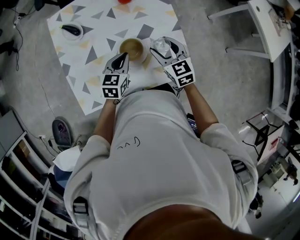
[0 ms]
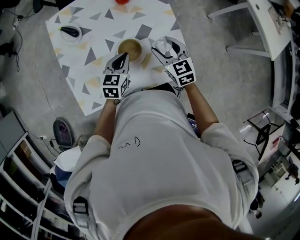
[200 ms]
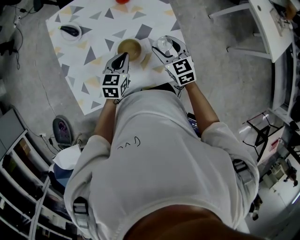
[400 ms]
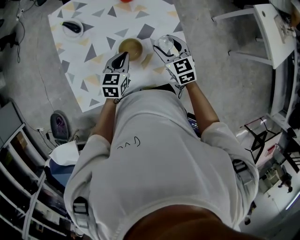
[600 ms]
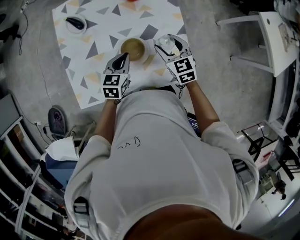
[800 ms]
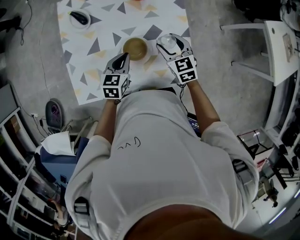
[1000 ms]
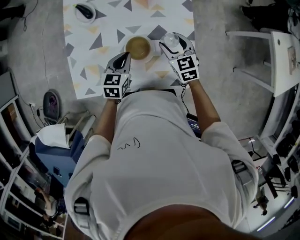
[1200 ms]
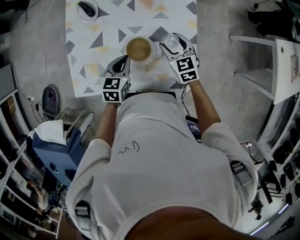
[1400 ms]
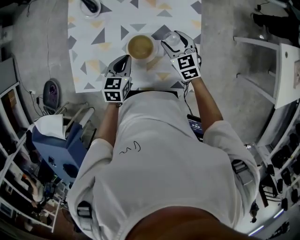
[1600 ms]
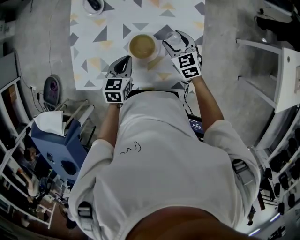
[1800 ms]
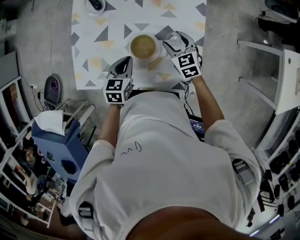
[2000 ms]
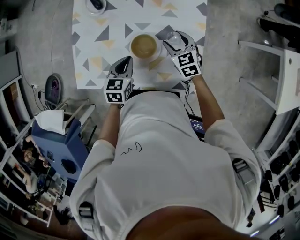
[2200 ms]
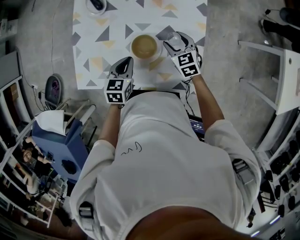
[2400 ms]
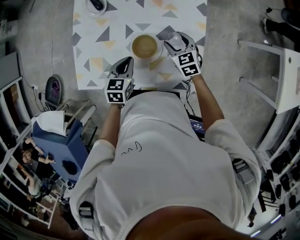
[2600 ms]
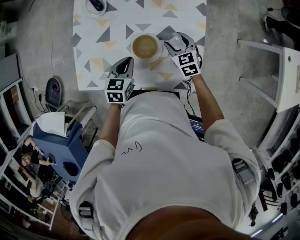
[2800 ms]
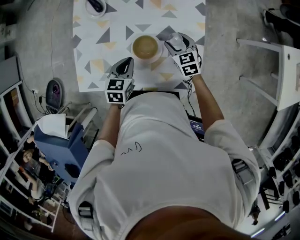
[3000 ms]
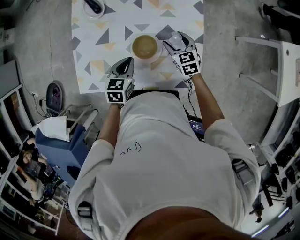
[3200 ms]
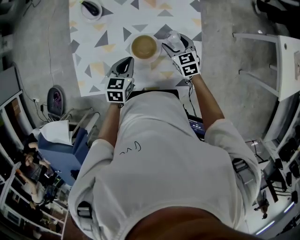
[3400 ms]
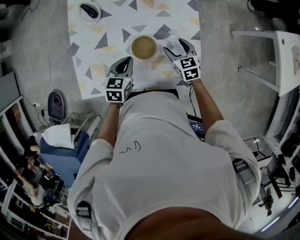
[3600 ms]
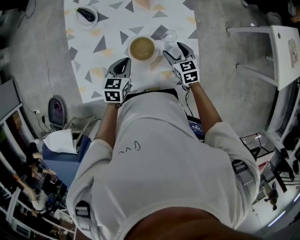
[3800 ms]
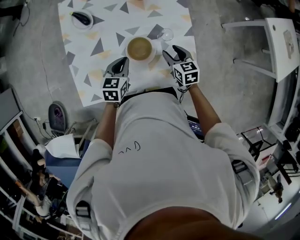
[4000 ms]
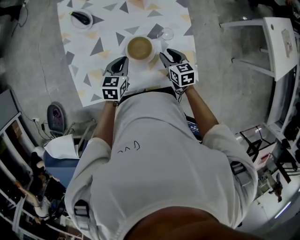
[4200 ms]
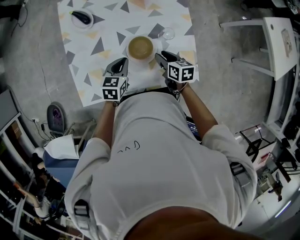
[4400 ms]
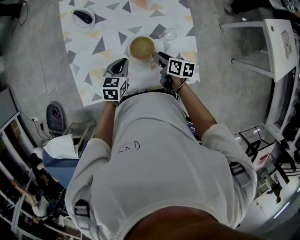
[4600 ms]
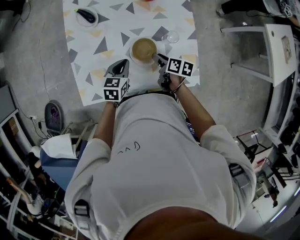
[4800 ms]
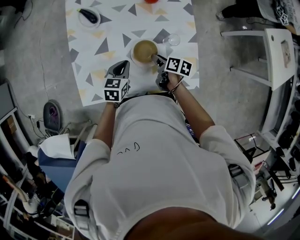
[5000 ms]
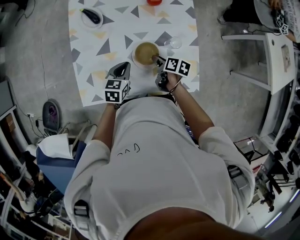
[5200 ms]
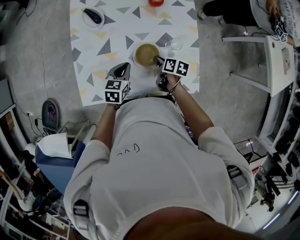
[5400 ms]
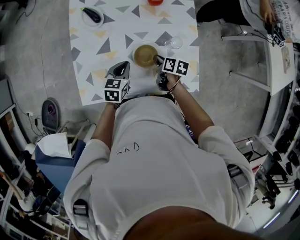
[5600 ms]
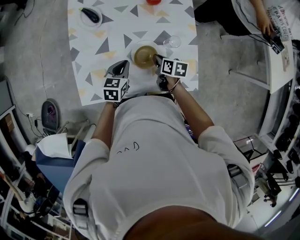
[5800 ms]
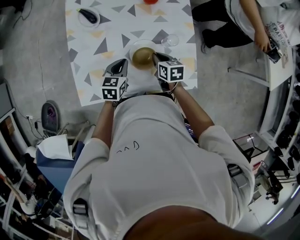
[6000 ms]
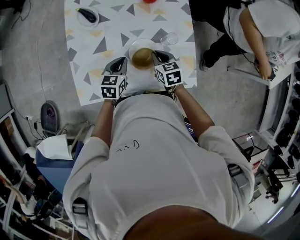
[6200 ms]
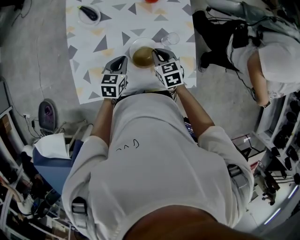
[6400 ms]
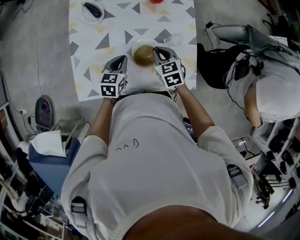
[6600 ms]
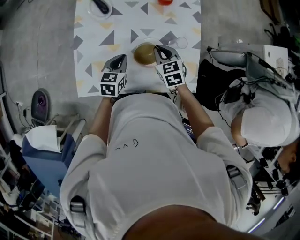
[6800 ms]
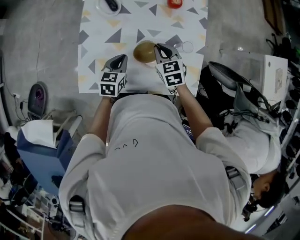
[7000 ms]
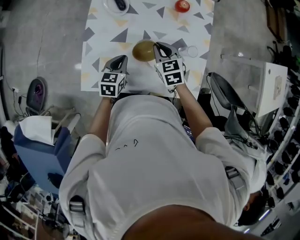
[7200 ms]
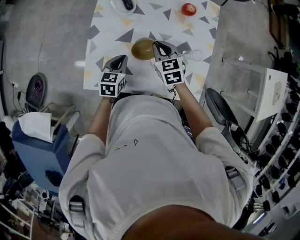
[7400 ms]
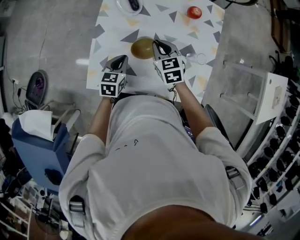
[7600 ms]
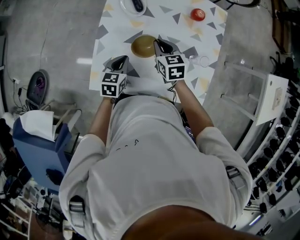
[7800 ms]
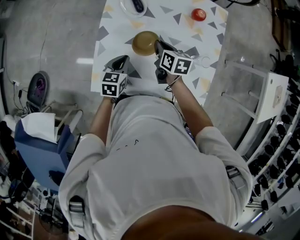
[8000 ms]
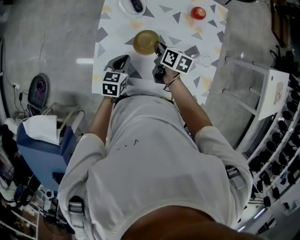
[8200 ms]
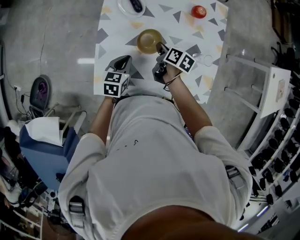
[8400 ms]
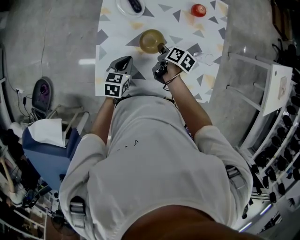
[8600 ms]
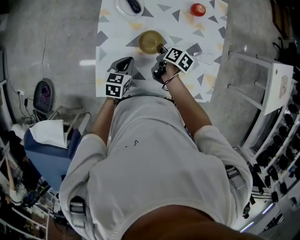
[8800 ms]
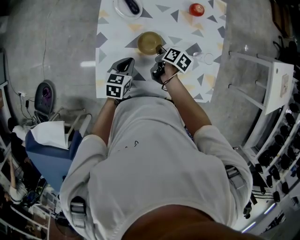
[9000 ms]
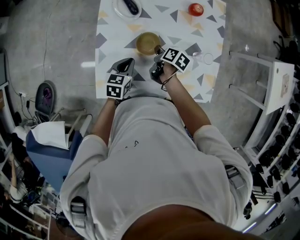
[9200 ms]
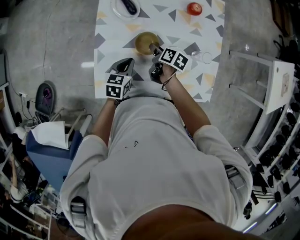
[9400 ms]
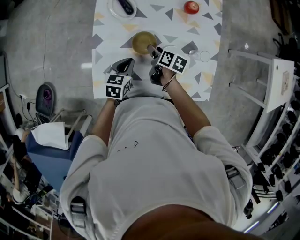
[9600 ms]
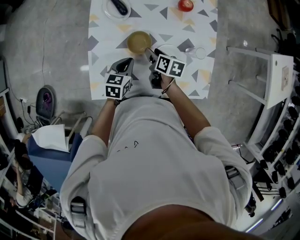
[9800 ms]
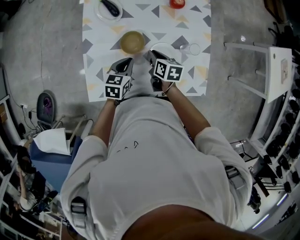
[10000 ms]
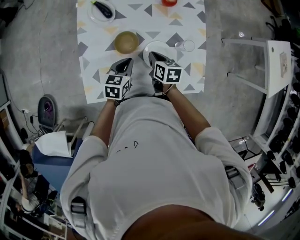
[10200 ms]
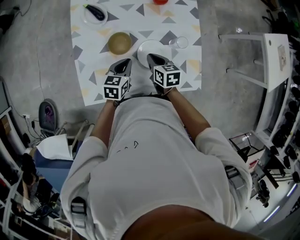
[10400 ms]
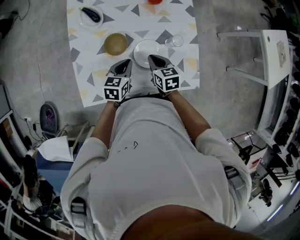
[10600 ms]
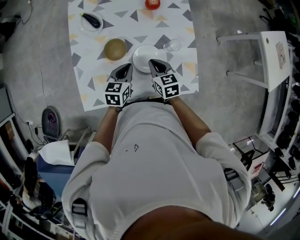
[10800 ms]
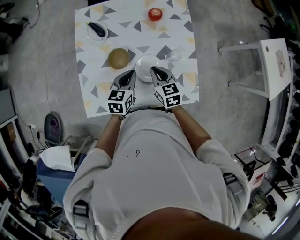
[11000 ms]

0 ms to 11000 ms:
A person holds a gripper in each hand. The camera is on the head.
0 ms to 1600 ms: The left gripper turns by some 20 degrees, while the right gripper travels forward and downward by some 10 cm.
1600 ms to 3200 ms: There are only small adjustments of the grippers.
3200 ms to 4800 ms: The right gripper heads backward, covering about 10 cm, rotates around the line of its fingers by about 60 degrees, clockwise from behind, and closes.
4800 ms to 6200 ms: The right gripper twists about 50 degrees counterclockwise, seen from behind, and closes up.
6200 ms to 7800 ms: The right gripper goes roughly 20 cm to the left and forward, while the left gripper goes some 15 cm to the left.
7800 ms to 9400 ms: The right gripper travels downward by some 10 cm, twists some 60 degrees clockwise, seen from behind, and opens up.
9400 ms to 11000 ms: The left gripper shifts some 15 cm to the right and upward. The right gripper heads to the right, upward and backward, covering approximately 20 cm, twists some 50 degrees counterclockwise, seen from behind, and closes up.

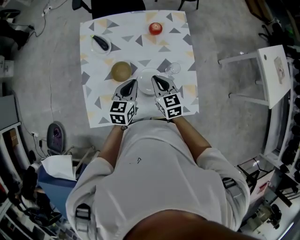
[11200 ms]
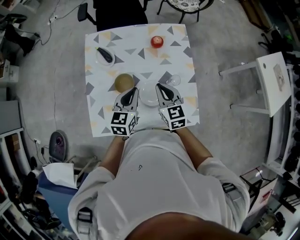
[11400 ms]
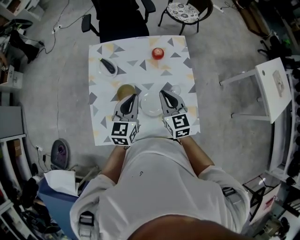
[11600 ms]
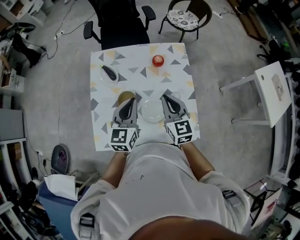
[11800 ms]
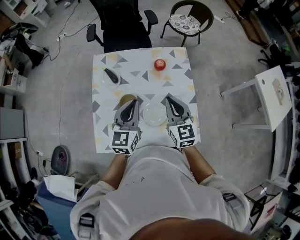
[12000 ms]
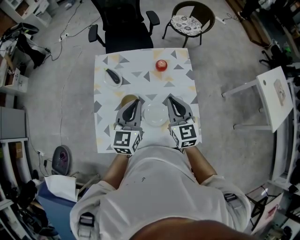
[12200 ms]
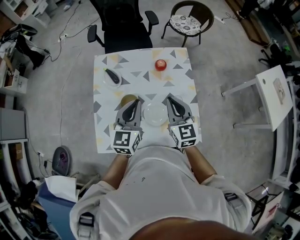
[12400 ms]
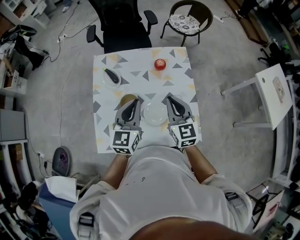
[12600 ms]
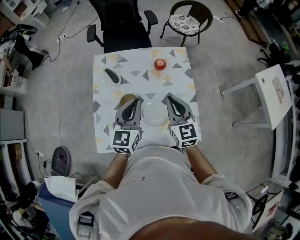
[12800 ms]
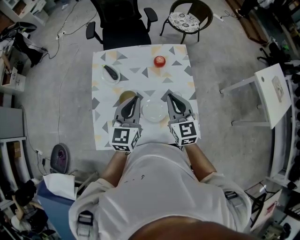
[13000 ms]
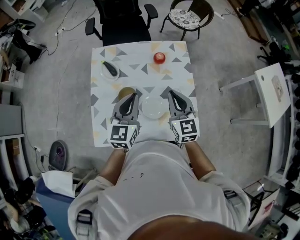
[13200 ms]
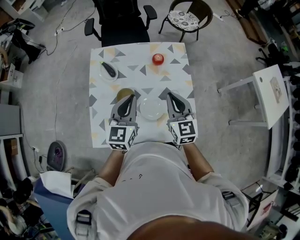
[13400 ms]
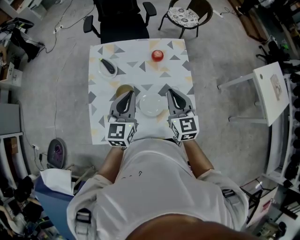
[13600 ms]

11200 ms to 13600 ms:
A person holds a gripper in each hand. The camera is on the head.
11200 ms to 12400 ms: The grippers both shift upward by approximately 15 cm. The left gripper swivels about 20 degrees.
12400 ms to 13600 ms: The grippers make only small movements.

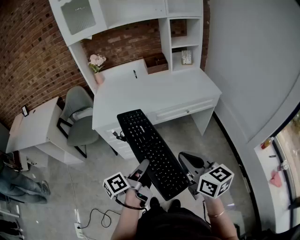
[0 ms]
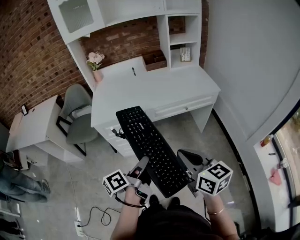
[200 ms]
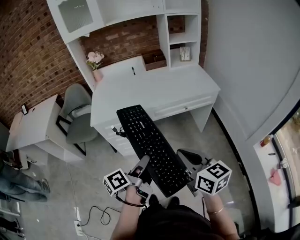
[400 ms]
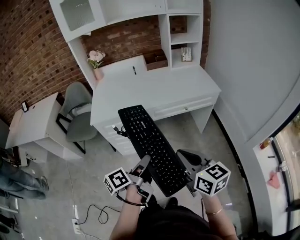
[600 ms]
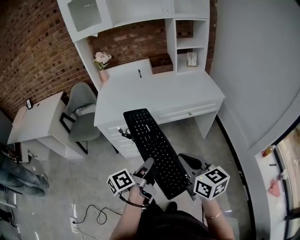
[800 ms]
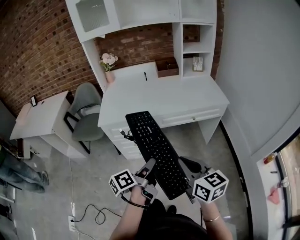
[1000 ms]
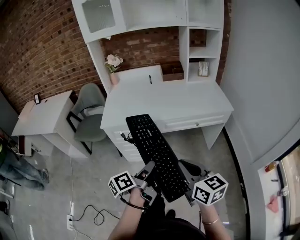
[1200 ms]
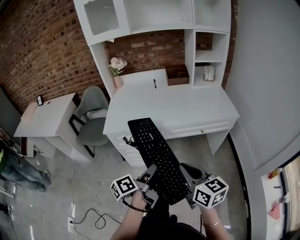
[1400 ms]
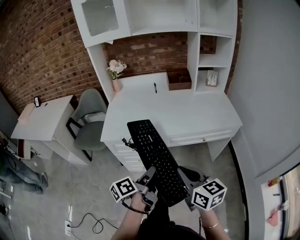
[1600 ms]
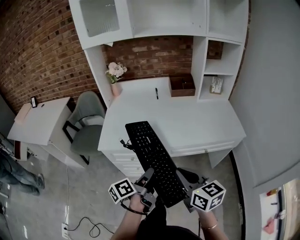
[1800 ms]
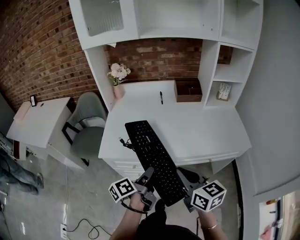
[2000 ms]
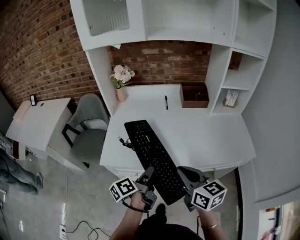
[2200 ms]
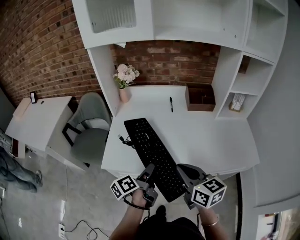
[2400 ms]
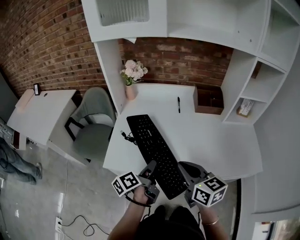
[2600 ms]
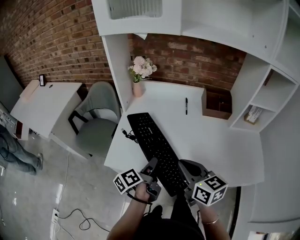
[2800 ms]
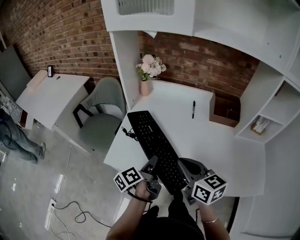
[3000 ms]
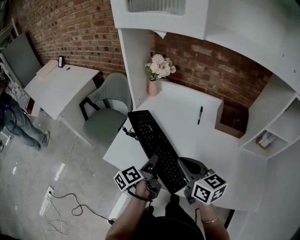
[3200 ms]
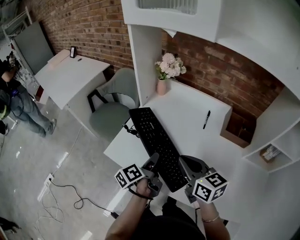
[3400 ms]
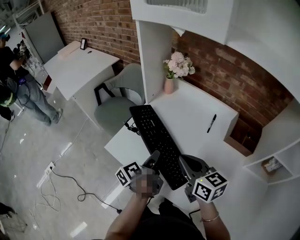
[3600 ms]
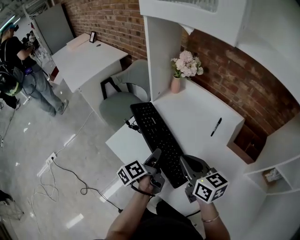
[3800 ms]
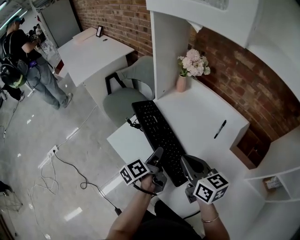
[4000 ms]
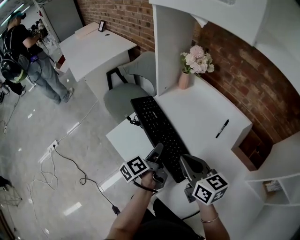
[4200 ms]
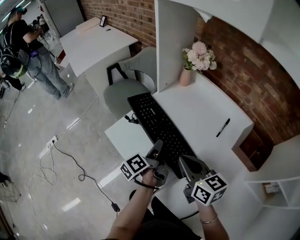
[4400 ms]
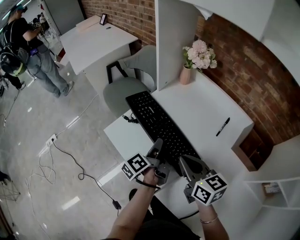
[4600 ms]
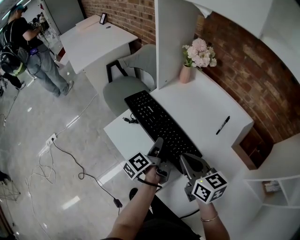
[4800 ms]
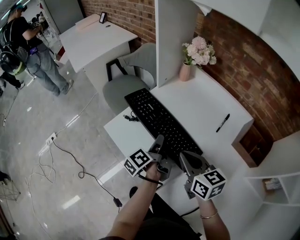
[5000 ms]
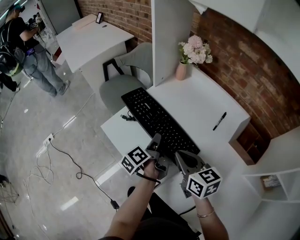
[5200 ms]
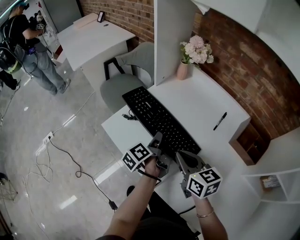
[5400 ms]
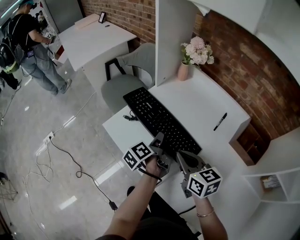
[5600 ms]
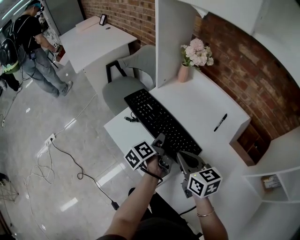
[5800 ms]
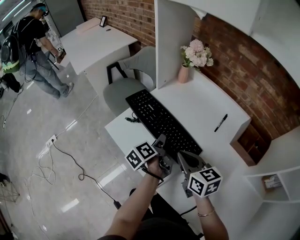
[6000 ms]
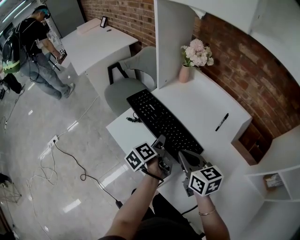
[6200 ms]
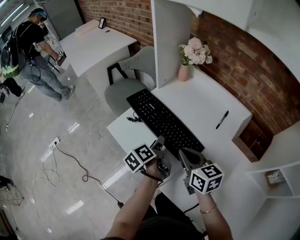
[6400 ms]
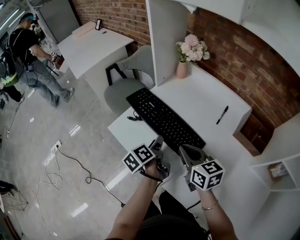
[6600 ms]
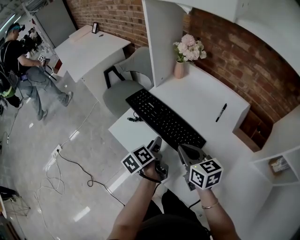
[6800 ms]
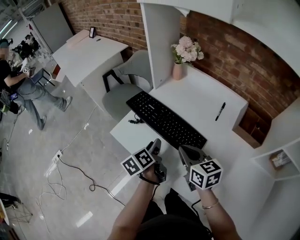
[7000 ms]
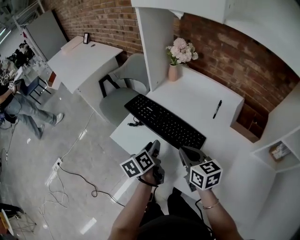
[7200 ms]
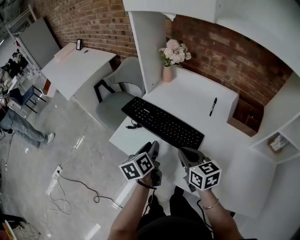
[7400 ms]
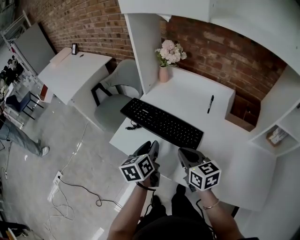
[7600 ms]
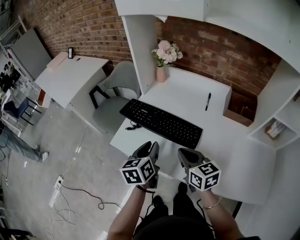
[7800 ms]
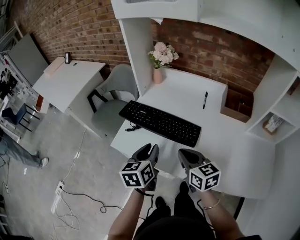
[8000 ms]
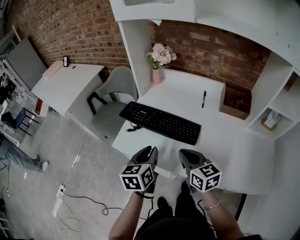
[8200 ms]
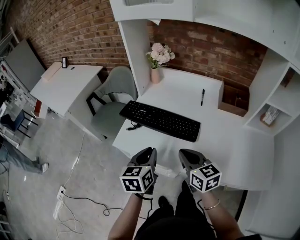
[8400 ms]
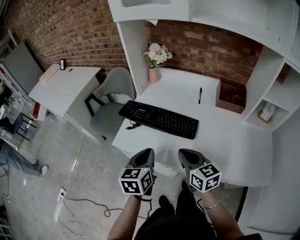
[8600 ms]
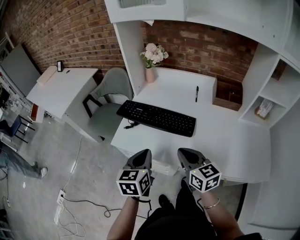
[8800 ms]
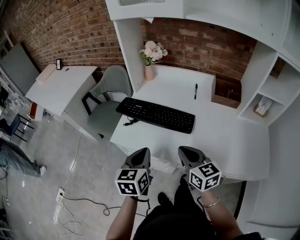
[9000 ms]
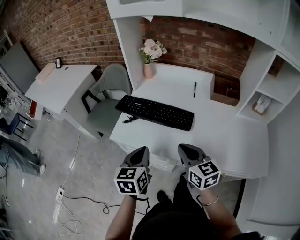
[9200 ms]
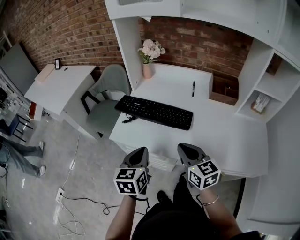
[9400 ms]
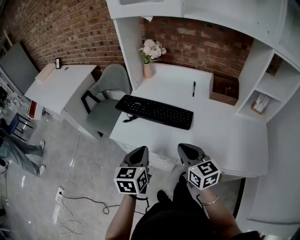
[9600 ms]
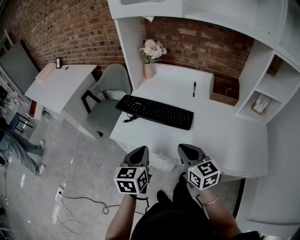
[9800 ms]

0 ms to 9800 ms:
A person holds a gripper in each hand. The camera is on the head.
0 ms to 1400 ms: The two grippers go about 5 cm forward.
1400 ms to 2800 ms: The two grippers go about 40 cm forward.
2800 ms to 4200 ms: The right gripper ends up roughly 15 cm from where it was, and turns by some 30 degrees, while the left gripper moves roughly 10 cm, and rotates about 40 degrees.
4200 ms to 5600 ms: There are only small adjustments of the grippers.
5600 ms to 7000 ms: The left gripper travels to the left by approximately 5 cm, and turns by roughly 20 degrees.
7000 ms to 8400 ms: The right gripper shifts approximately 10 cm backward, while the left gripper heads upward and backward, covering roughly 10 cm, twists roughly 50 degrees clockwise, seen from behind, and closes its fingers.
8400 ms to 9800 ms: The grippers both shift backward by about 5 cm.
